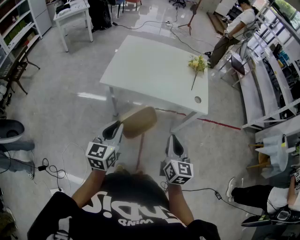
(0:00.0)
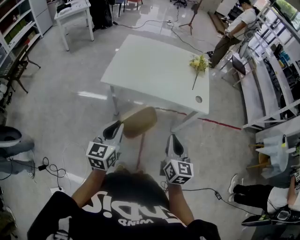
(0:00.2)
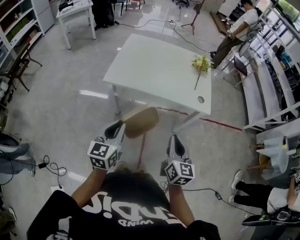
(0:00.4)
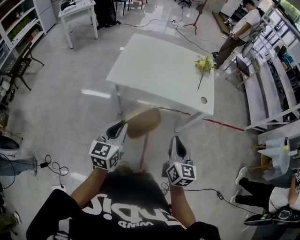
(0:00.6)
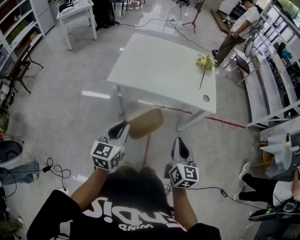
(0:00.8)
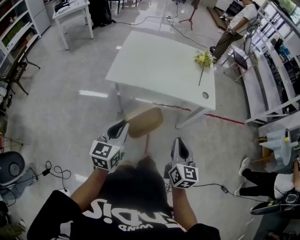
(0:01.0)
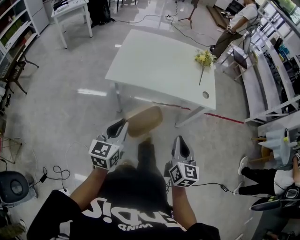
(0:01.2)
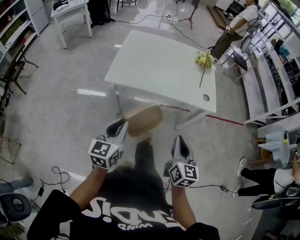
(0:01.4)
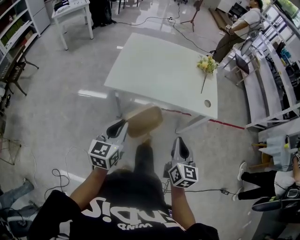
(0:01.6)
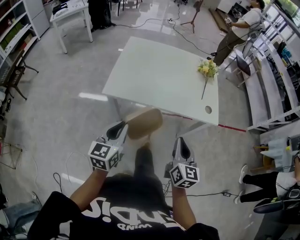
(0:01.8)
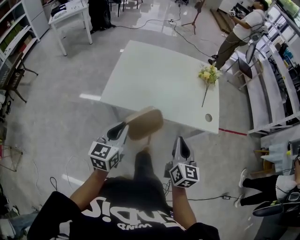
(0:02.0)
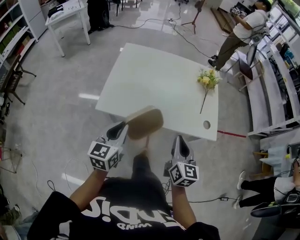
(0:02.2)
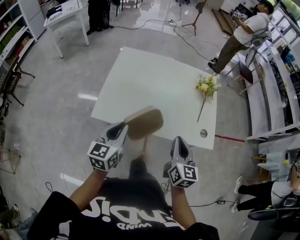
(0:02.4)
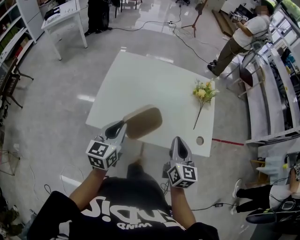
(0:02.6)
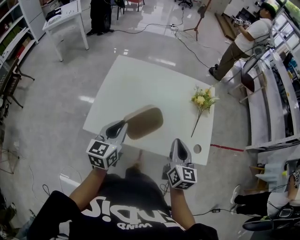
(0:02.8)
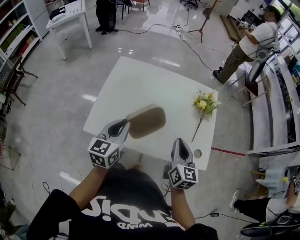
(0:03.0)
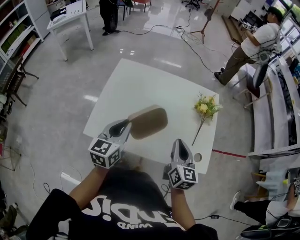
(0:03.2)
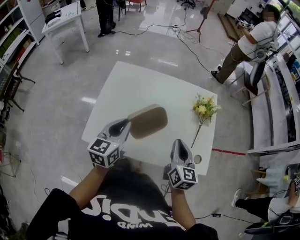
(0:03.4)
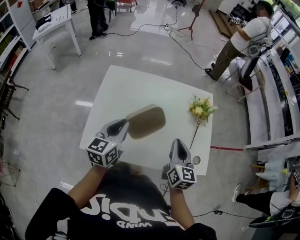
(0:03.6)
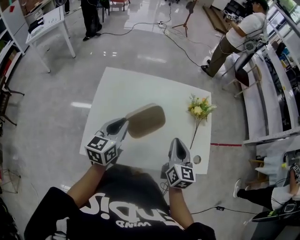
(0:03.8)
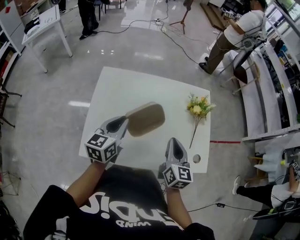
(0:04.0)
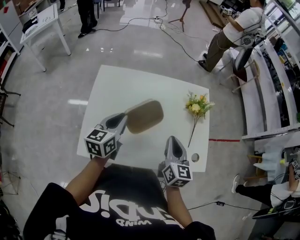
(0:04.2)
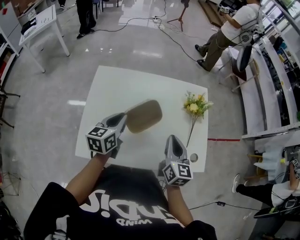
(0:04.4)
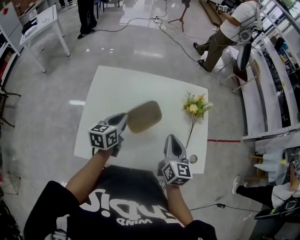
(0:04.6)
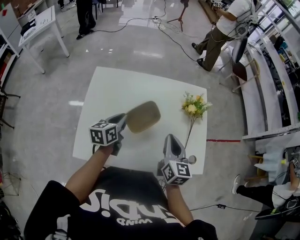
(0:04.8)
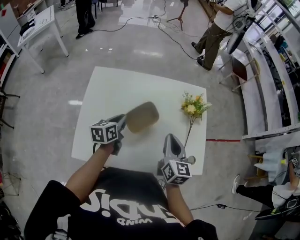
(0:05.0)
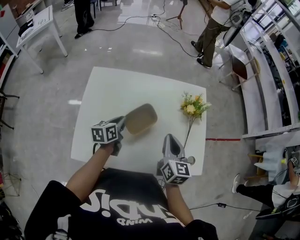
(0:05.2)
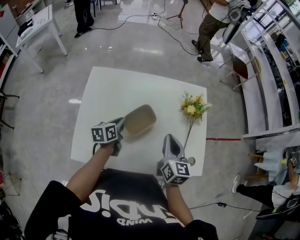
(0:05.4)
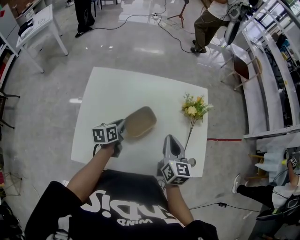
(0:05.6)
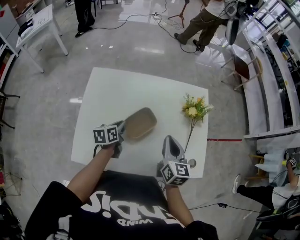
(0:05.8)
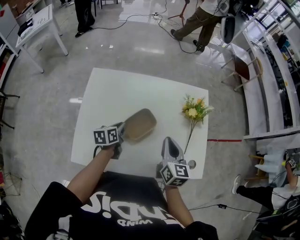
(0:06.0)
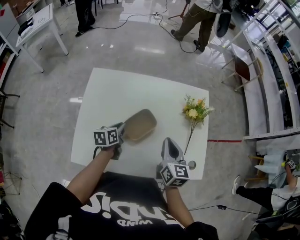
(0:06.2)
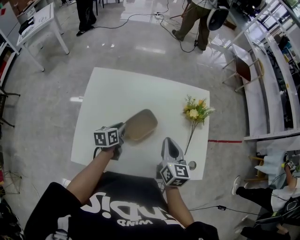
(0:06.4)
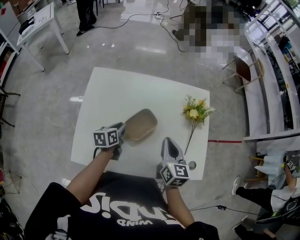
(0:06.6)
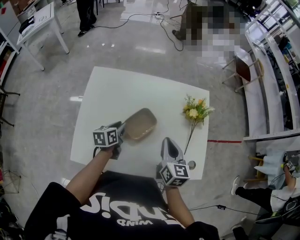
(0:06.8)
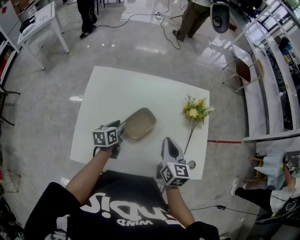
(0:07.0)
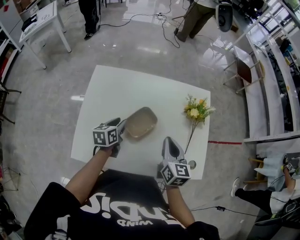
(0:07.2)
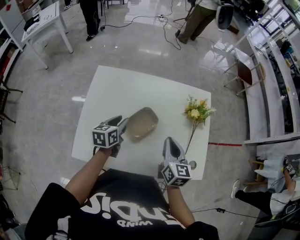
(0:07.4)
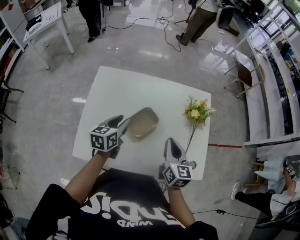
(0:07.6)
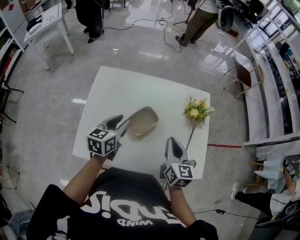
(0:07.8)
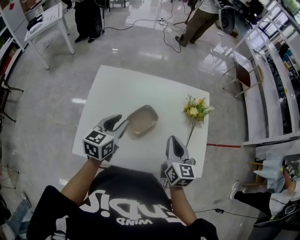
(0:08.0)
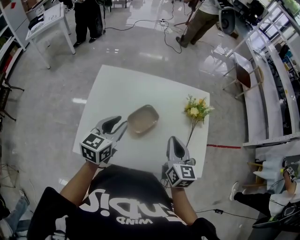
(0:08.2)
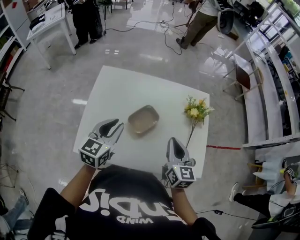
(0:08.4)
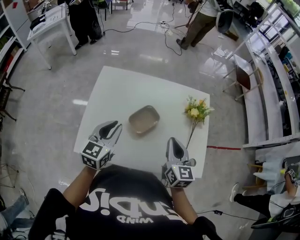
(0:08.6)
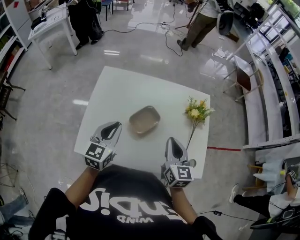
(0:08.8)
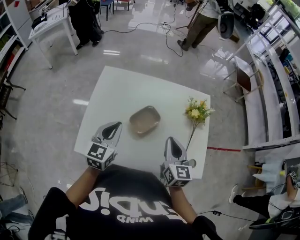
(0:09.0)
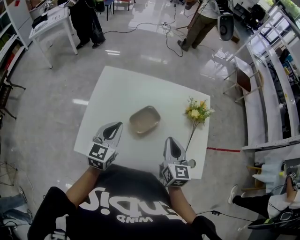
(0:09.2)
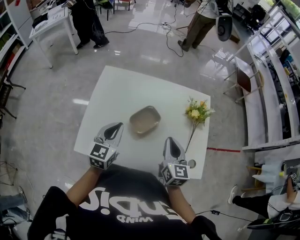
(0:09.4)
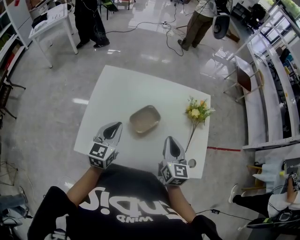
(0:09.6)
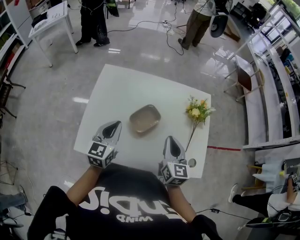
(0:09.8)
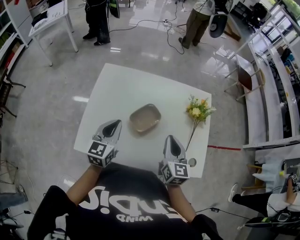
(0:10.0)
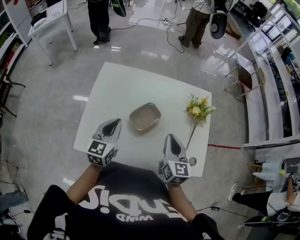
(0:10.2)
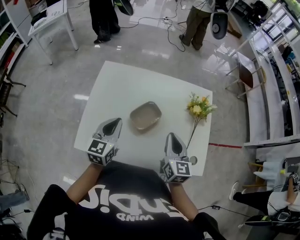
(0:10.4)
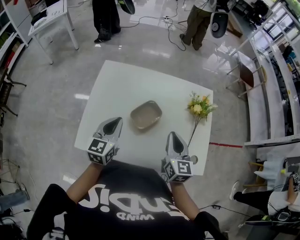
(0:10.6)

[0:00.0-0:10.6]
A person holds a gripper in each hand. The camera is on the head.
0:00.0 to 0:01.6: The grippers both shift forward and to the left by some 10 cm.
0:01.6 to 0:03.0: Both grippers travel together forward, roughly 40 cm.
0:03.0 to 0:04.6: The left gripper shifts some 20 cm forward, while the right gripper moves forward, approximately 10 cm.
0:04.6 to 0:06.0: The right gripper moves approximately 5 cm. The left gripper goes some 10 cm downward, and changes its angle by some 20 degrees.
0:06.0 to 0:07.6: The left gripper goes approximately 10 cm upward, and opens its fingers.
0:07.6 to 0:09.0: The left gripper shifts approximately 10 cm backward and upward, swivels some 30 degrees, and closes.
0:09.0 to 0:10.6: The grippers stay close to where they were, moving slightly.

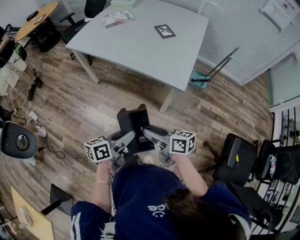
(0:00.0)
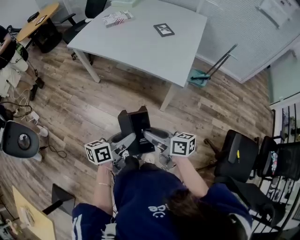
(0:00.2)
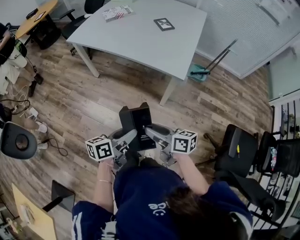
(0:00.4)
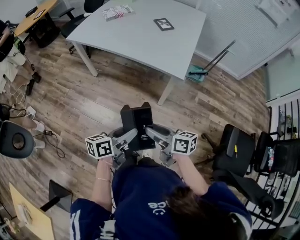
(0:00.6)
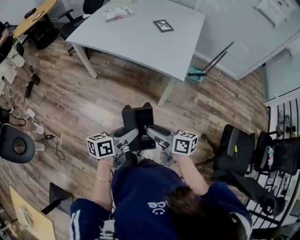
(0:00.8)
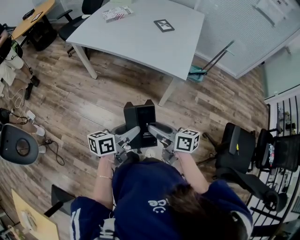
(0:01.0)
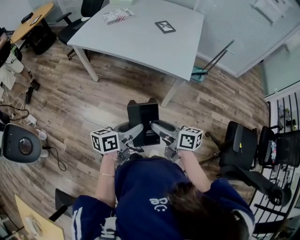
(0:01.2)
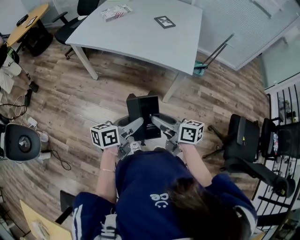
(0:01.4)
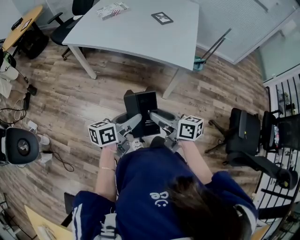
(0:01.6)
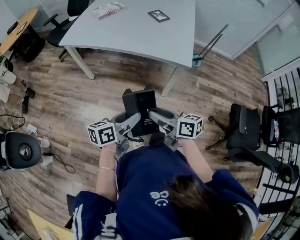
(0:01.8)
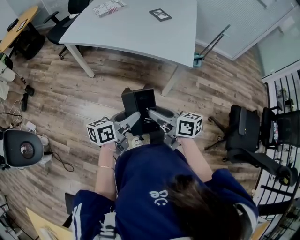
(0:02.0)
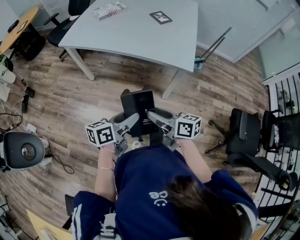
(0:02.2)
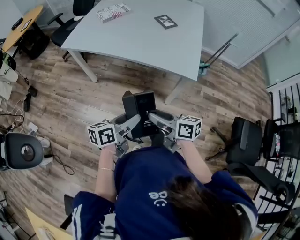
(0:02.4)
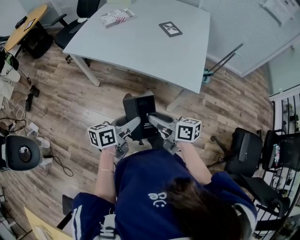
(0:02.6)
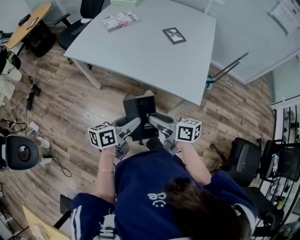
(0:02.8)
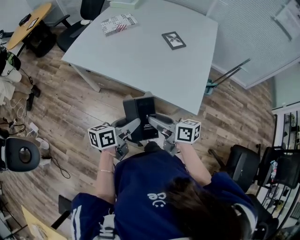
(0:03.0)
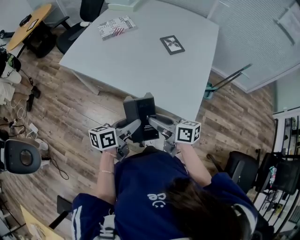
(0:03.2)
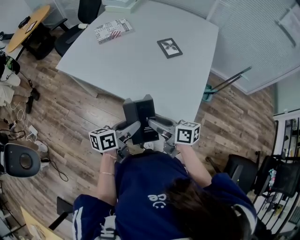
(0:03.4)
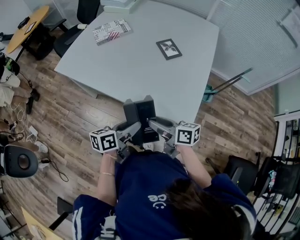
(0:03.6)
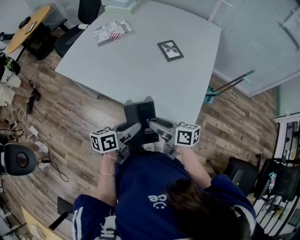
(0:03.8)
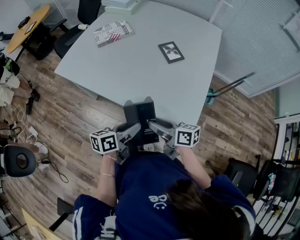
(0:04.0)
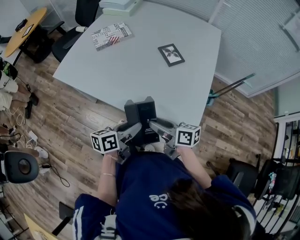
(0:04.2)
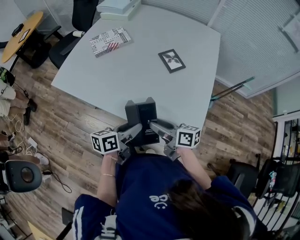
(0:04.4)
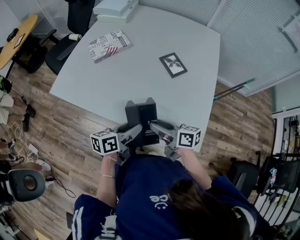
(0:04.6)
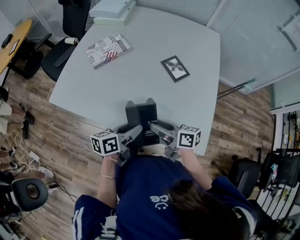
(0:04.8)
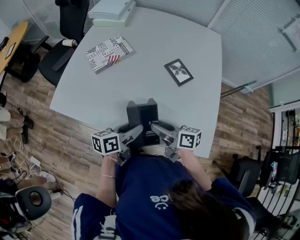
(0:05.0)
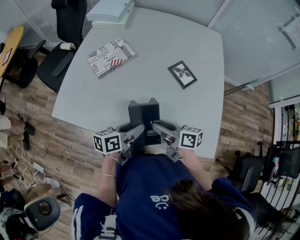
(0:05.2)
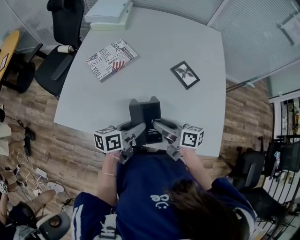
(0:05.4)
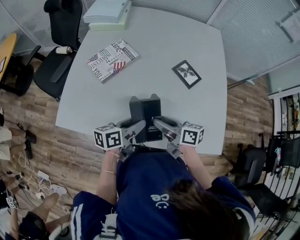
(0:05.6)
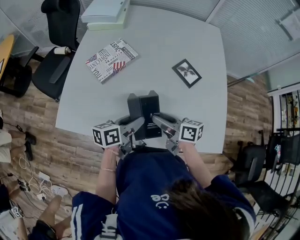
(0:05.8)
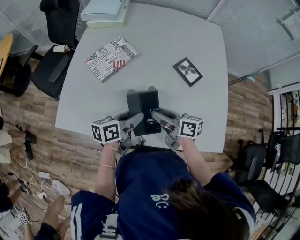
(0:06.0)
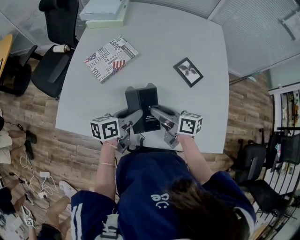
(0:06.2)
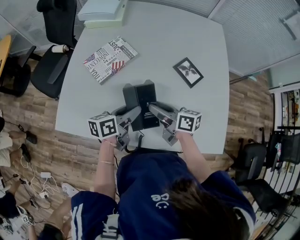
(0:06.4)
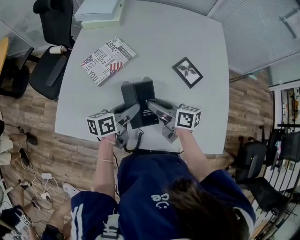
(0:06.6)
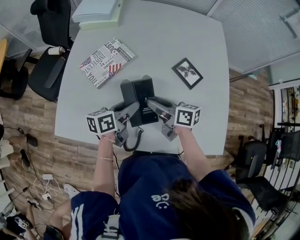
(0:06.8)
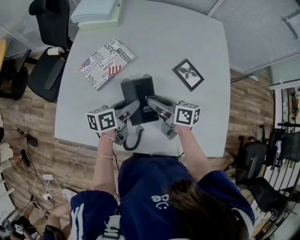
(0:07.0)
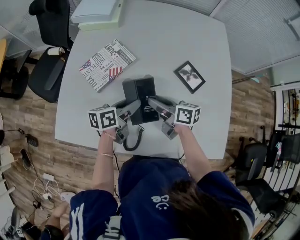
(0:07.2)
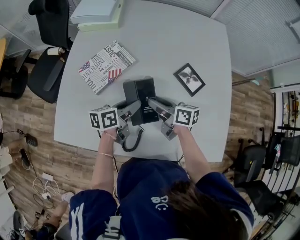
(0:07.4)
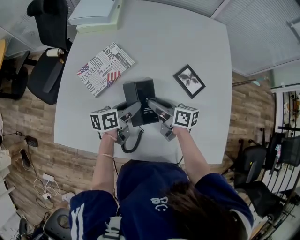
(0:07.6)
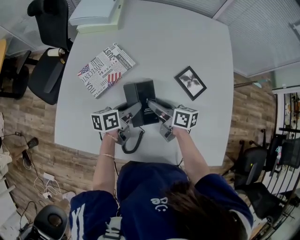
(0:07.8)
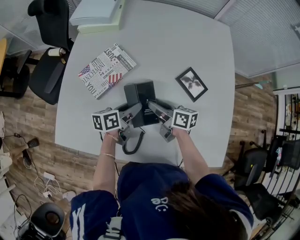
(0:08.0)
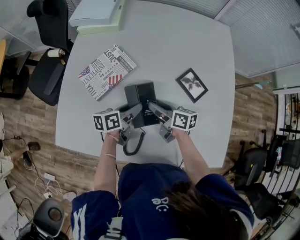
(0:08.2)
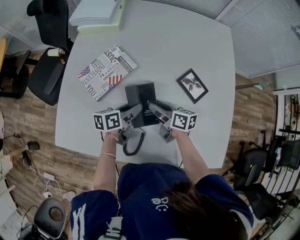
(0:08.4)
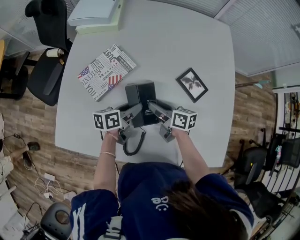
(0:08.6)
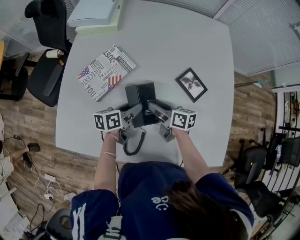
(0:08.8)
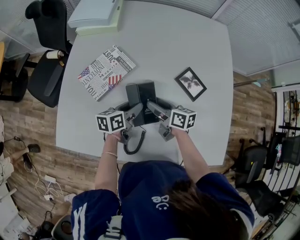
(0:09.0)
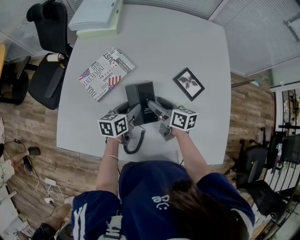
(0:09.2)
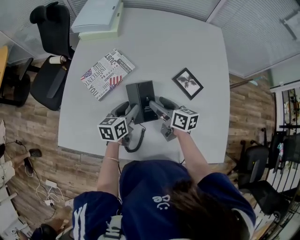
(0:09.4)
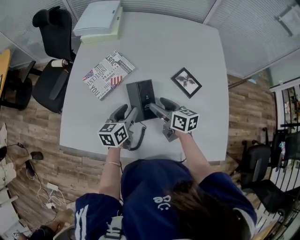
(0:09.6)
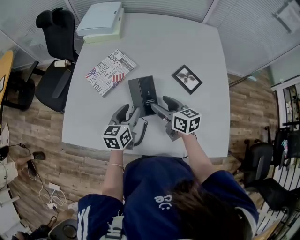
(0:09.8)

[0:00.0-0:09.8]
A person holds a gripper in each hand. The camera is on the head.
0:00.0 to 0:01.4: The two grippers go roughly 10 cm to the left.
0:01.4 to 0:02.8: Both grippers travel together forward, about 20 cm.
0:02.8 to 0:04.2: The two grippers go roughly 20 cm forward and to the right.
0:04.2 to 0:05.6: Both grippers move forward and to the left, roughly 25 cm.
0:05.6 to 0:07.0: The grippers both shift forward by about 15 cm.
0:07.0 to 0:08.4: Both grippers move downward, some 5 cm.
0:08.4 to 0:09.8: The left gripper shifts approximately 10 cm backward and upward, and rotates about 30 degrees. Meanwhile the right gripper travels upward and backward by approximately 10 cm, swivels some 20 degrees, and opens.

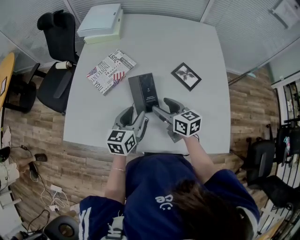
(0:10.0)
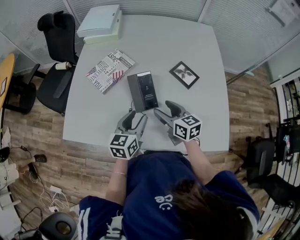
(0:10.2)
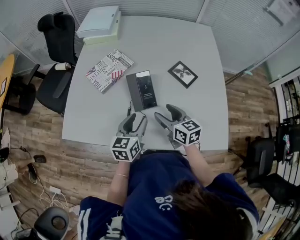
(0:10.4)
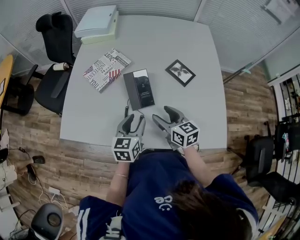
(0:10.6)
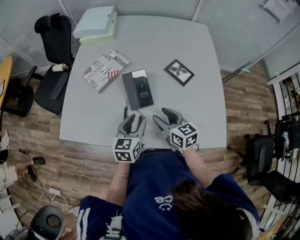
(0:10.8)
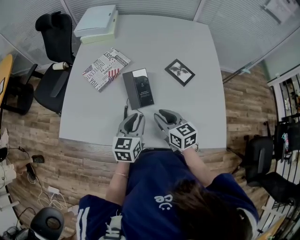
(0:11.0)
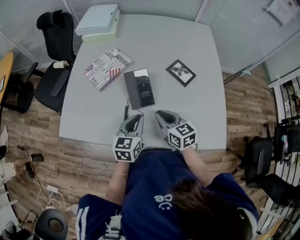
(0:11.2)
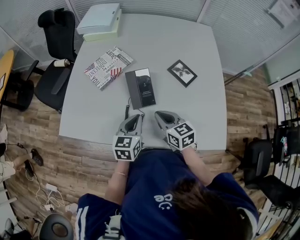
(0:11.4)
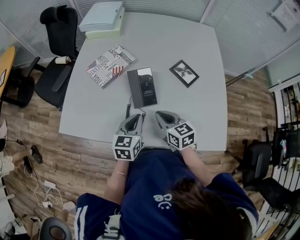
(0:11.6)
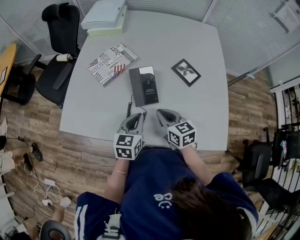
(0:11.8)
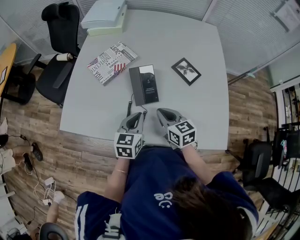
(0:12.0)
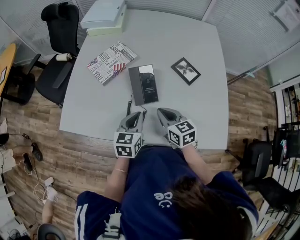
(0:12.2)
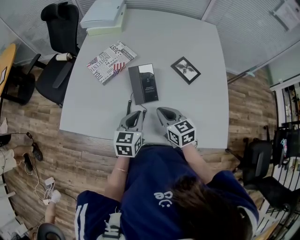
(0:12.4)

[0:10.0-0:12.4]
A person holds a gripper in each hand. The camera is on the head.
0:10.0 to 0:11.2: The grippers both shift backward by roughly 5 cm. The left gripper closes up, while the right gripper closes.
0:11.2 to 0:12.4: The grippers move only a little.

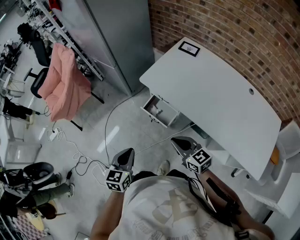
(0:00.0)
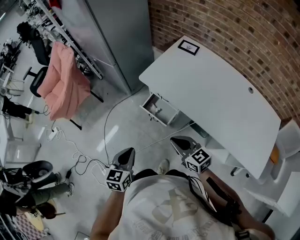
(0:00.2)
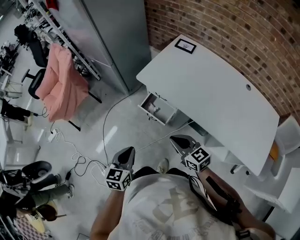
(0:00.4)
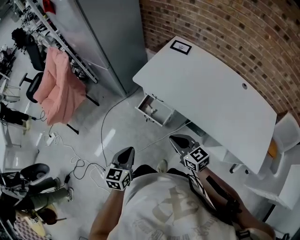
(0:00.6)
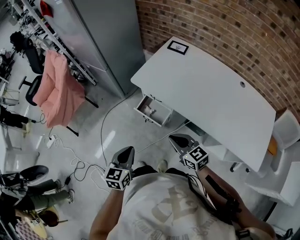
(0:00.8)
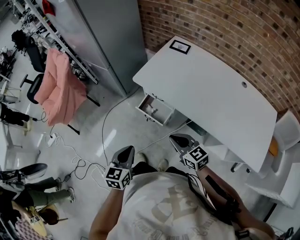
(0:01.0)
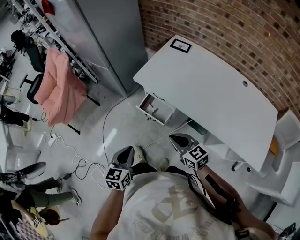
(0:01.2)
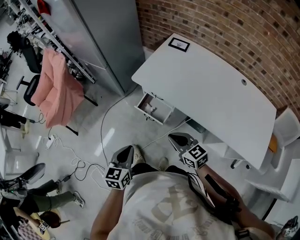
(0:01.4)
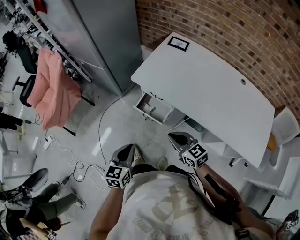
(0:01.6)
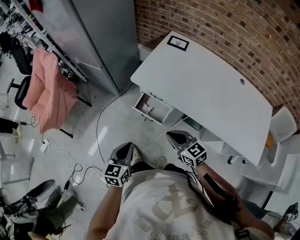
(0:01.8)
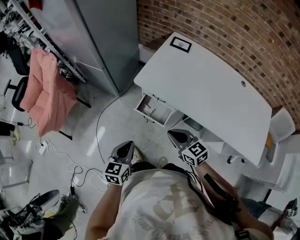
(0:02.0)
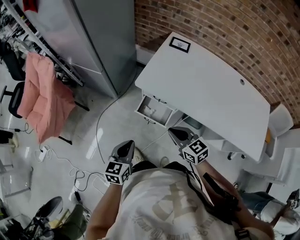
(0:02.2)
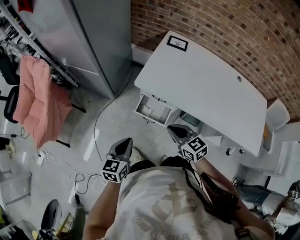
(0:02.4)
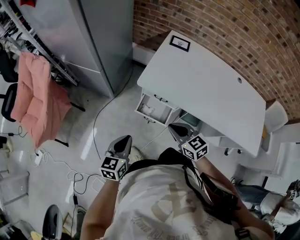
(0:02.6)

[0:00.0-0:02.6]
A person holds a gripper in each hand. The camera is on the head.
0:00.0 to 0:01.2: There are only small adjustments of the grippers.
0:01.2 to 0:02.6: Both grippers travel together forward and to the left, about 20 cm.
